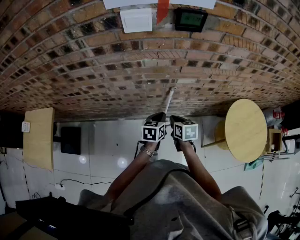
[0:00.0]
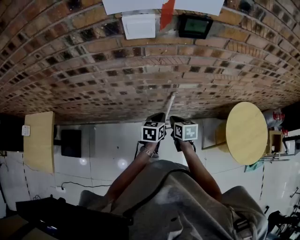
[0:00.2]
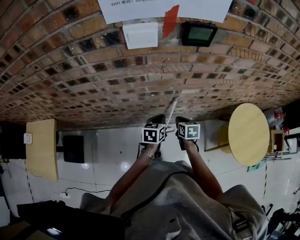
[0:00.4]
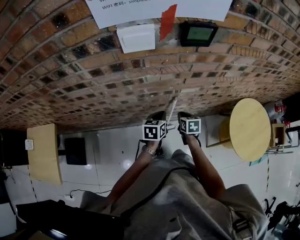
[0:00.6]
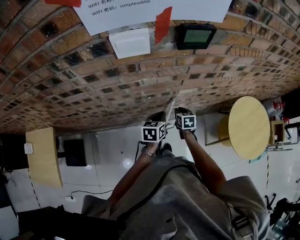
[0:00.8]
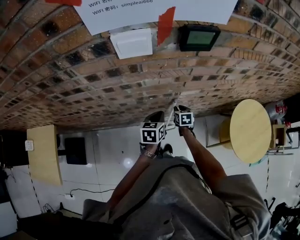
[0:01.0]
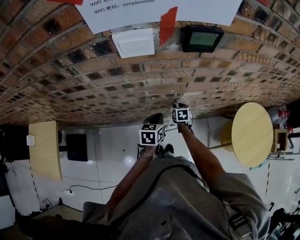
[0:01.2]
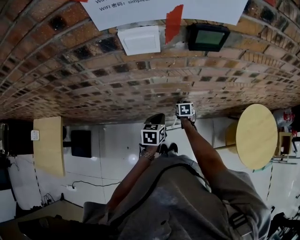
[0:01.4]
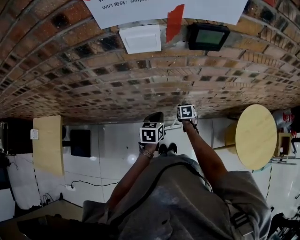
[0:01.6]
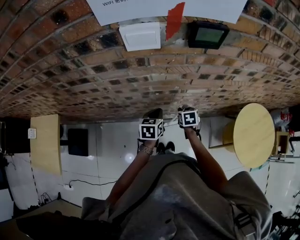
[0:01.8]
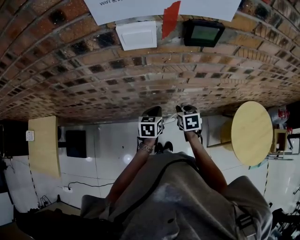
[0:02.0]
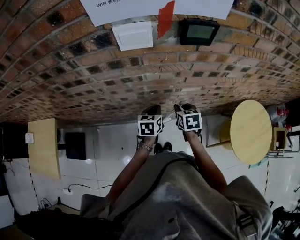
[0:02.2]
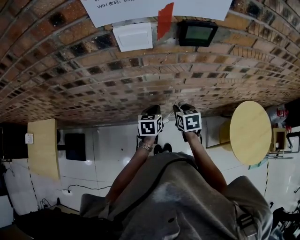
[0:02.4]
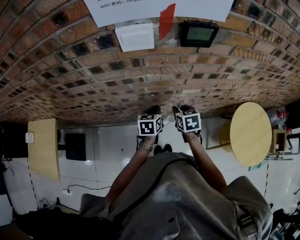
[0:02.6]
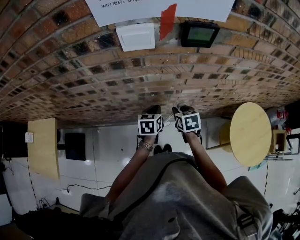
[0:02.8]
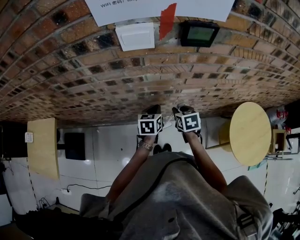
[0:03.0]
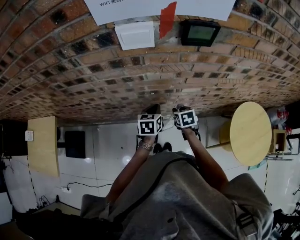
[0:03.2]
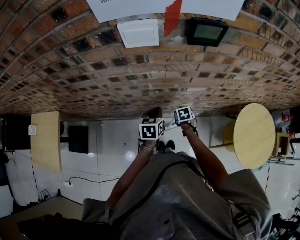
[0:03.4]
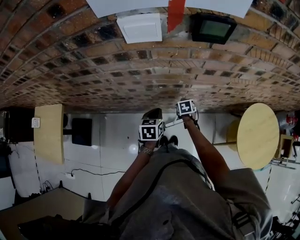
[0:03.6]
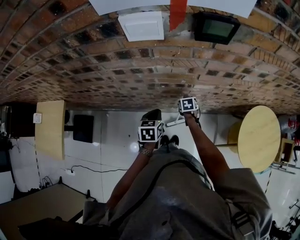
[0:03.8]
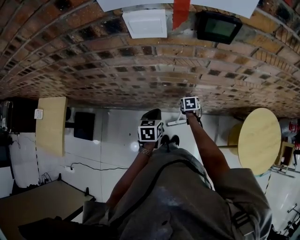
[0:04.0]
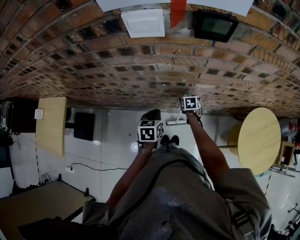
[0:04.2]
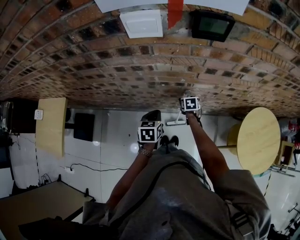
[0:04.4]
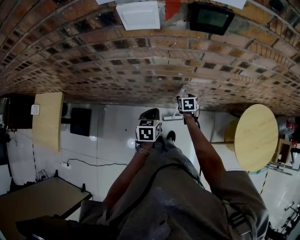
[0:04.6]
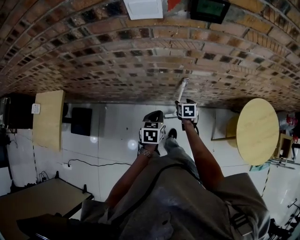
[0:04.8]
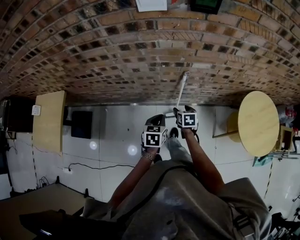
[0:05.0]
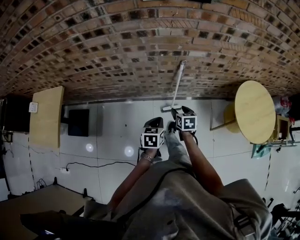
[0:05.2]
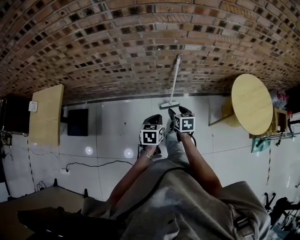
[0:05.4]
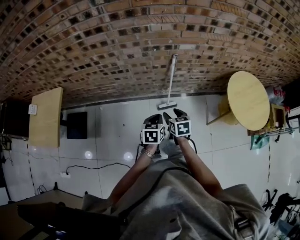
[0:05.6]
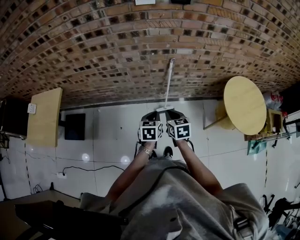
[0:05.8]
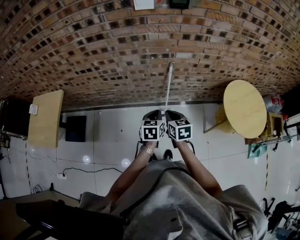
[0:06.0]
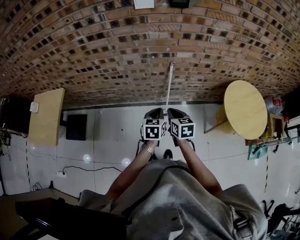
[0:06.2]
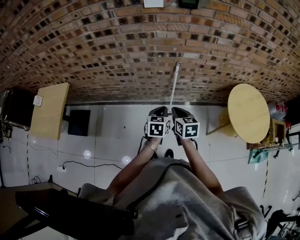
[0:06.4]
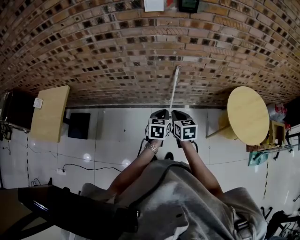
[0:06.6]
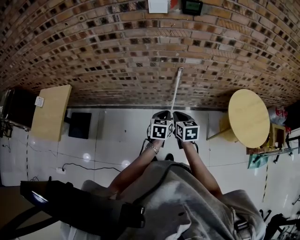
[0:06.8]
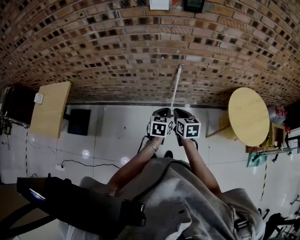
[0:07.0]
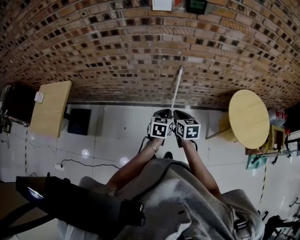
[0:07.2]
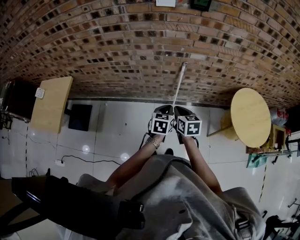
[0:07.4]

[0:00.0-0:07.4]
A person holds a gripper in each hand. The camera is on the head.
0.0 to 1.4 s: The right gripper is displaced forward and downward by roughly 25 cm. The left gripper goes approximately 10 cm forward and to the left.
1.4 to 3.0 s: The right gripper shifts about 20 cm upward and backward.
3.0 to 4.4 s: The right gripper heads downward, covering roughly 20 cm, and opens, while the left gripper is displaced backward by about 5 cm.
4.4 to 6.0 s: The left gripper travels backward by roughly 25 cm. Meanwhile the right gripper travels backward and upward by about 40 cm, turns by about 20 degrees, and closes its fingers.
6.0 to 7.4 s: The grippers stay close to where they were, moving slightly.

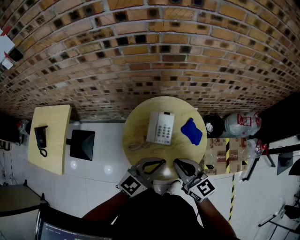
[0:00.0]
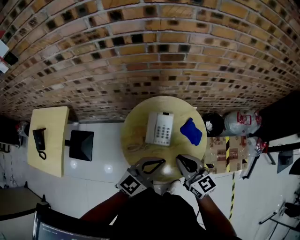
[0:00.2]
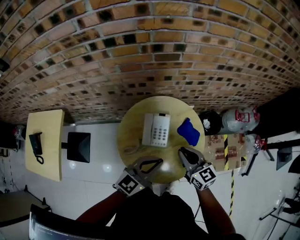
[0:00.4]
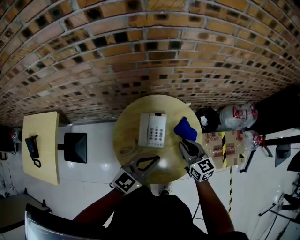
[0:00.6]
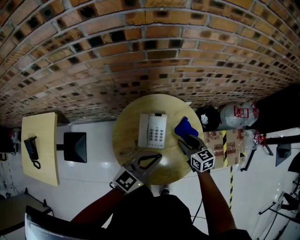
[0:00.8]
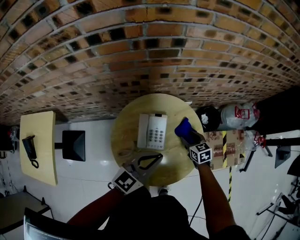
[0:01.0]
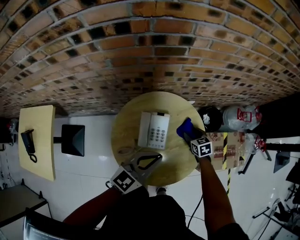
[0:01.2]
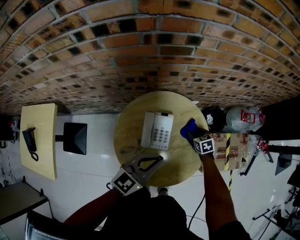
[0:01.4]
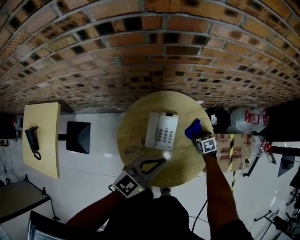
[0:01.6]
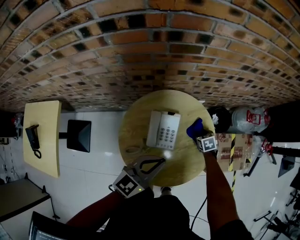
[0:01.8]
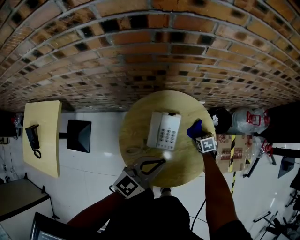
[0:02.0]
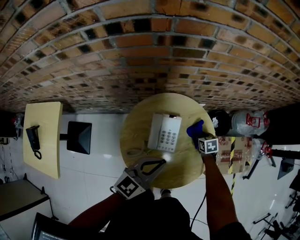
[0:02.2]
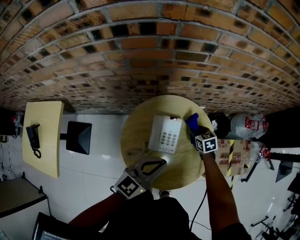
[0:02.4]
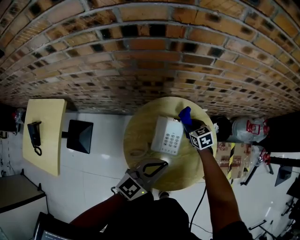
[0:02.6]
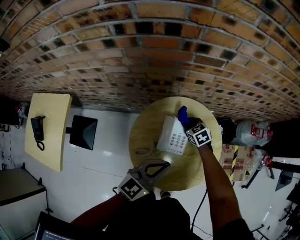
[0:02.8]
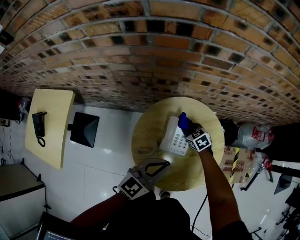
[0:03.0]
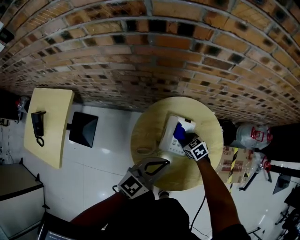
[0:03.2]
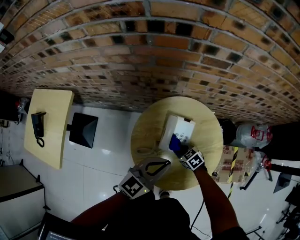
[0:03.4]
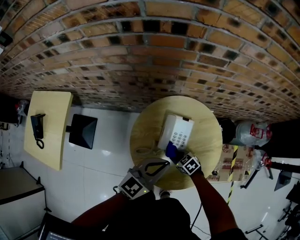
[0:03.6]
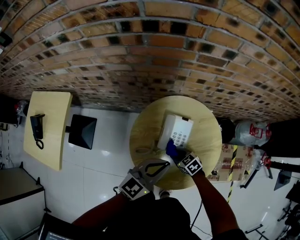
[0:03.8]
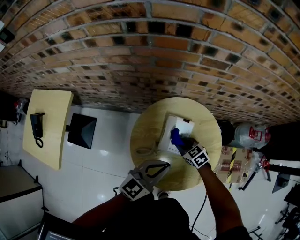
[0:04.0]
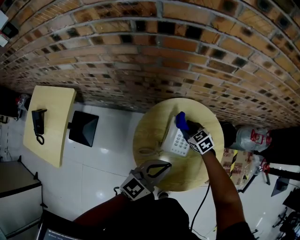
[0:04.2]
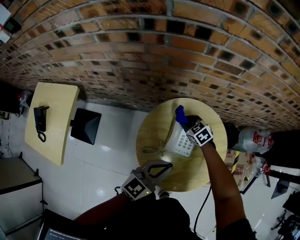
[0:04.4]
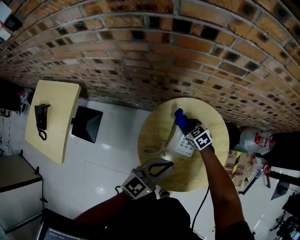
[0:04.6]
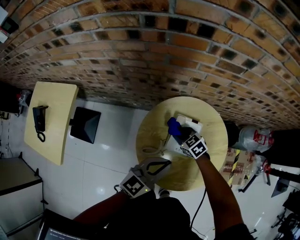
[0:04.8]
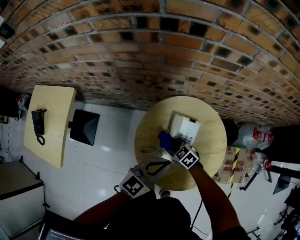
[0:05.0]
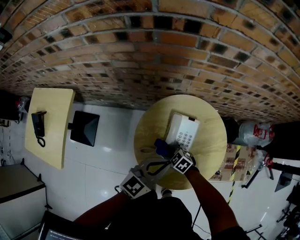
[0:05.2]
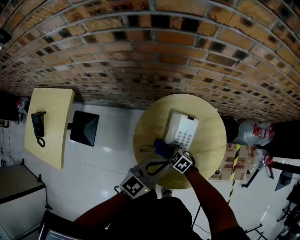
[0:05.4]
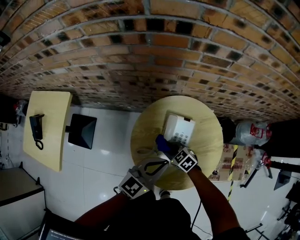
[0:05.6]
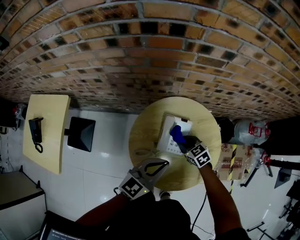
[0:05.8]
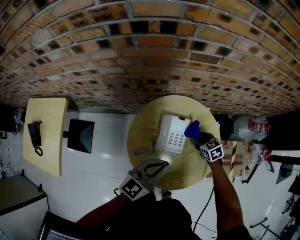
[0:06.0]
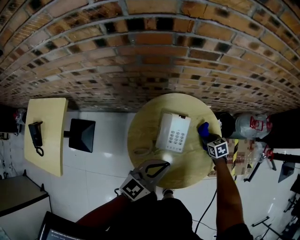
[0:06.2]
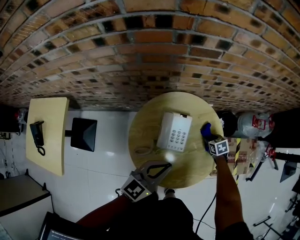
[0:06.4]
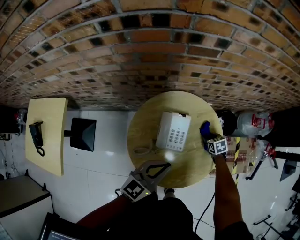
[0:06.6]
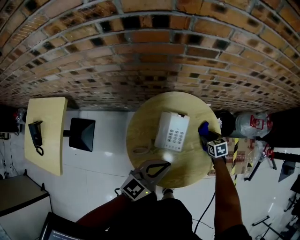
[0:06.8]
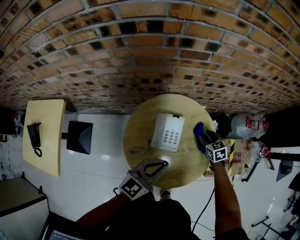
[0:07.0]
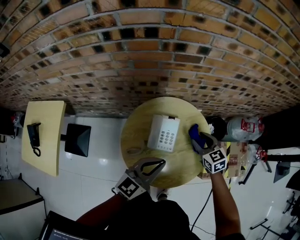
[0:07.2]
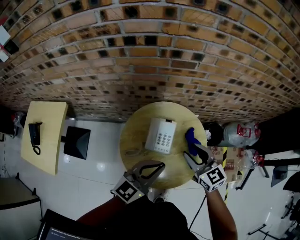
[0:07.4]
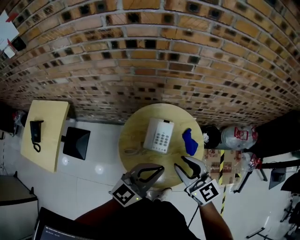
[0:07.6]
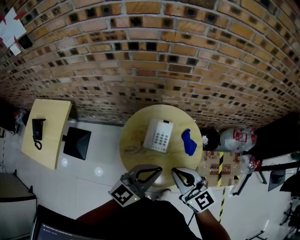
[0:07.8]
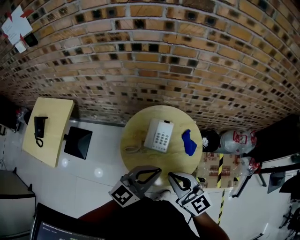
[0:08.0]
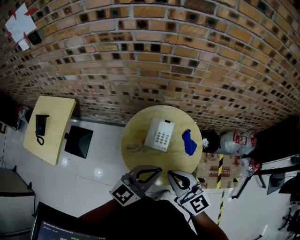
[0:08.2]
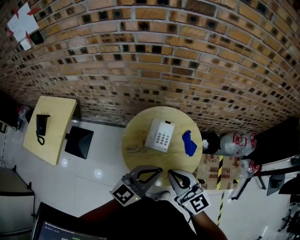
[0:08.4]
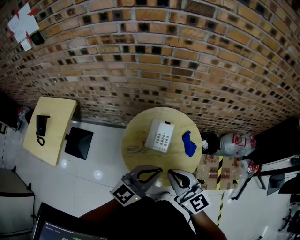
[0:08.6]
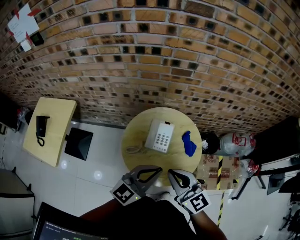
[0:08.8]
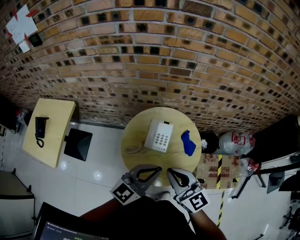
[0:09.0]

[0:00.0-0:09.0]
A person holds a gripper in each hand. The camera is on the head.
0.0 to 1.6 s: The right gripper goes about 40 cm downward and forward, tilts its fingers approximately 50 degrees downward, and opens; the left gripper moves forward and downward, roughly 10 cm.
1.6 to 3.0 s: The right gripper moves to the left, some 20 cm, rotates about 30 degrees, and closes its fingers; the left gripper is displaced to the left by about 5 cm.
4.4 to 6.0 s: The right gripper moves roughly 20 cm, and rotates roughly 20 degrees.
6.0 to 7.6 s: The left gripper goes approximately 15 cm upward, backward and to the right, while the right gripper travels upward and backward by approximately 35 cm, and tips its fingers upward by roughly 40 degrees.
7.6 to 9.0 s: The left gripper goes about 5 cm backward; the right gripper is displaced backward by approximately 10 cm, and closes up.

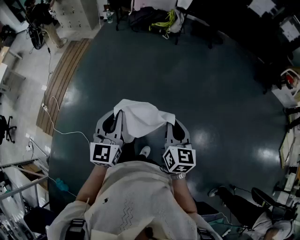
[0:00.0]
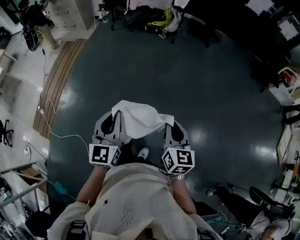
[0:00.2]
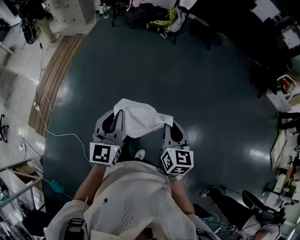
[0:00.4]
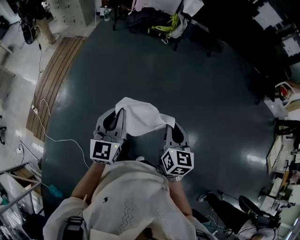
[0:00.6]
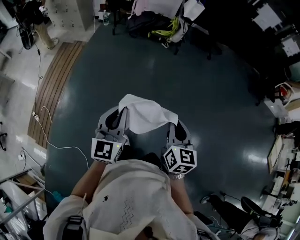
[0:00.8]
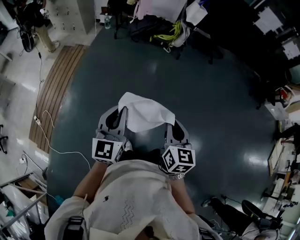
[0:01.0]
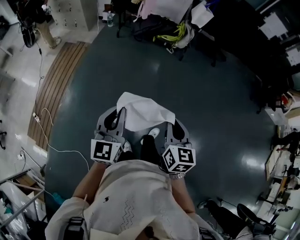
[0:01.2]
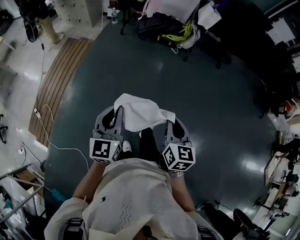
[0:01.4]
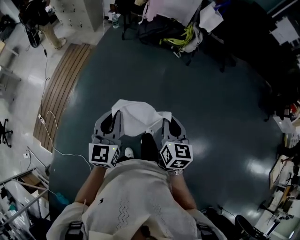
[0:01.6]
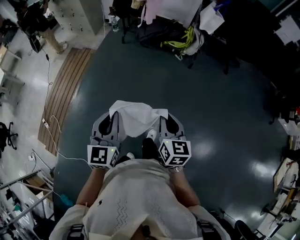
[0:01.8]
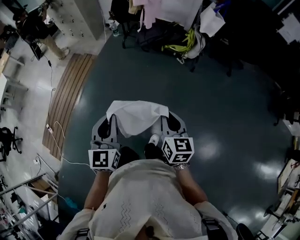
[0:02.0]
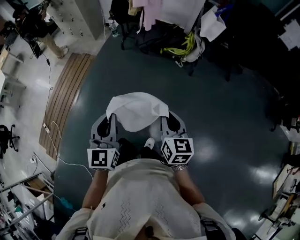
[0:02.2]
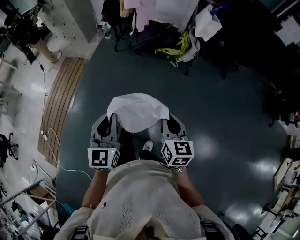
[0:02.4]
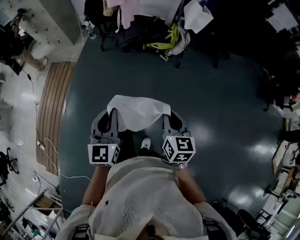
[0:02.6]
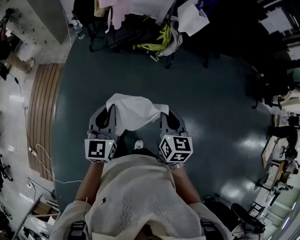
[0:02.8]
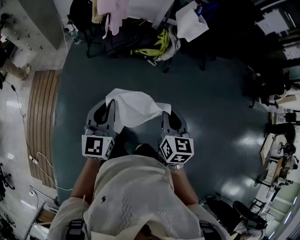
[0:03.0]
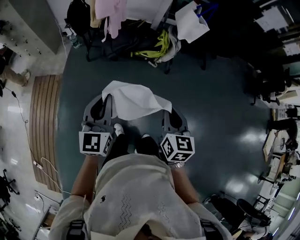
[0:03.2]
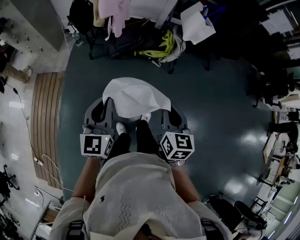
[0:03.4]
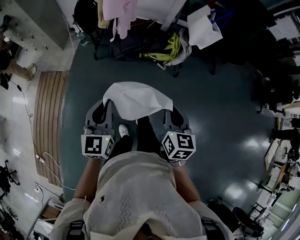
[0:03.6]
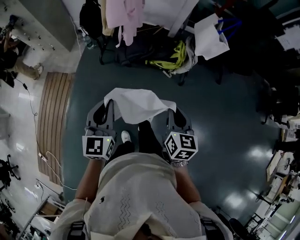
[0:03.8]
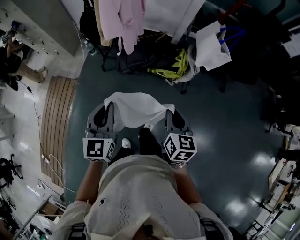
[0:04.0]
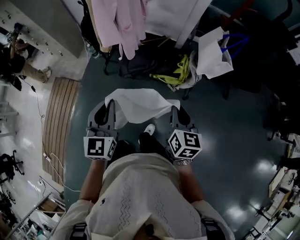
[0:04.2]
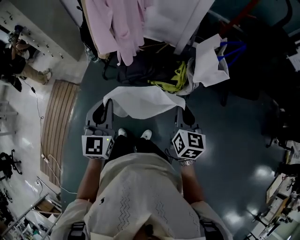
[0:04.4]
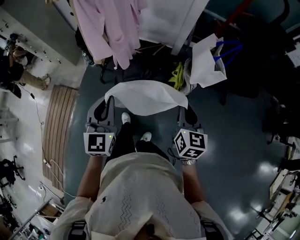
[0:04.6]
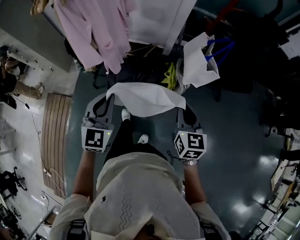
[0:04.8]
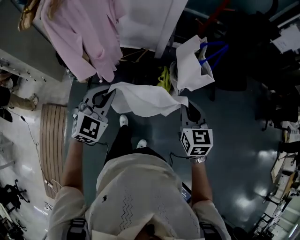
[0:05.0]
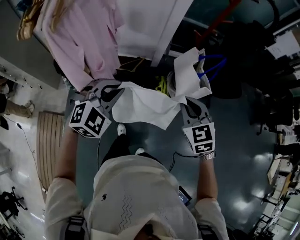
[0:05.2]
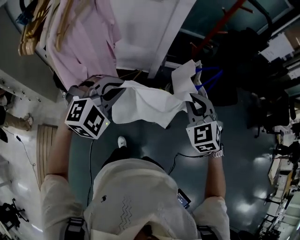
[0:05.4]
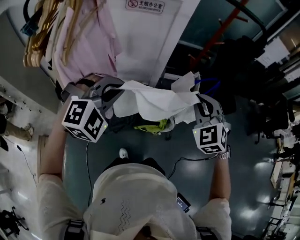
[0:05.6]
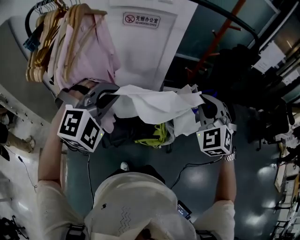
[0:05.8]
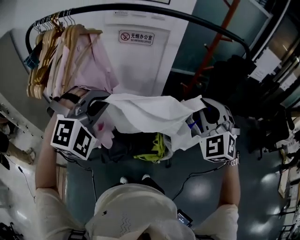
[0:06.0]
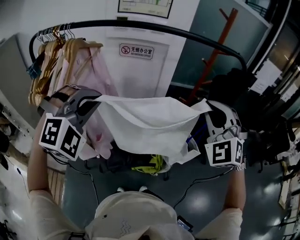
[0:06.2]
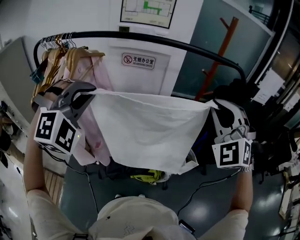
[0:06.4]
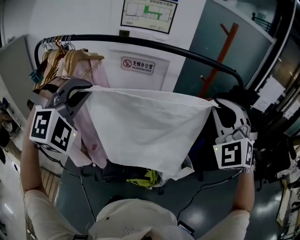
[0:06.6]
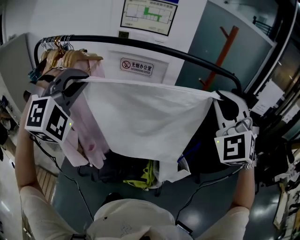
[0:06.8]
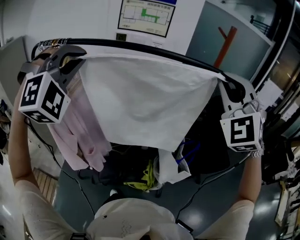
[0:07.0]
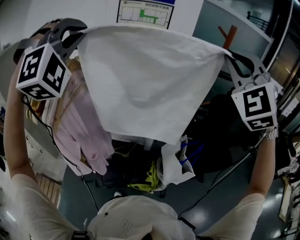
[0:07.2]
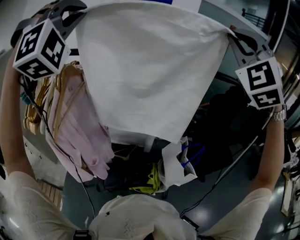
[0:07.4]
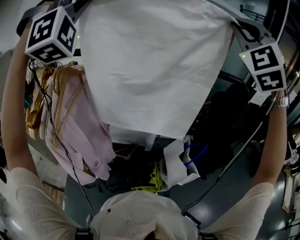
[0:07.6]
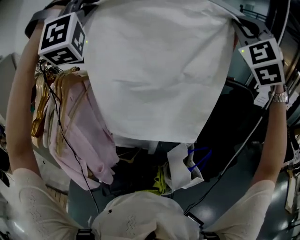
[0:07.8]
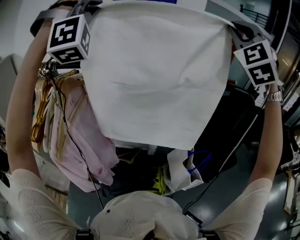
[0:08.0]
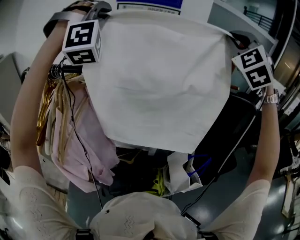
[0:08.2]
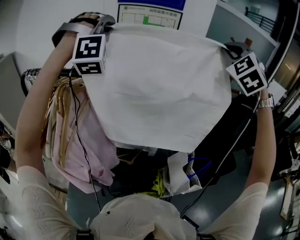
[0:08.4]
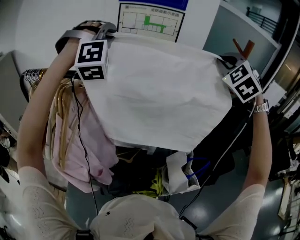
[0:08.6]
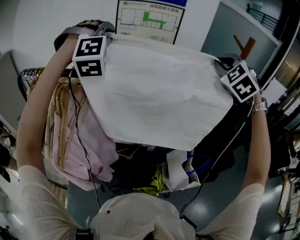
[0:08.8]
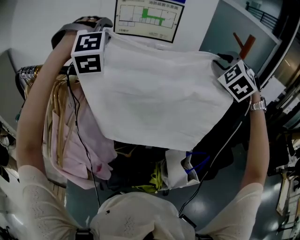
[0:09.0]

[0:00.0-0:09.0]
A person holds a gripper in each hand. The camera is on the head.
0.0 to 1.6 s: The two grippers travel together, forward, some 50 cm.
1.6 to 3.0 s: Both grippers are carried forward, about 50 cm.
3.0 to 4.4 s: Both grippers move forward, approximately 40 cm.
4.4 to 6.0 s: The right gripper is displaced upward by approximately 30 cm, and rotates around the line of its fingers by approximately 70 degrees, counterclockwise from behind; the left gripper shifts by approximately 40 cm, and twists some 80 degrees clockwise, seen from behind.
6.0 to 7.6 s: Both grippers move upward and forward, some 40 cm. The right gripper rotates roughly 30 degrees. The left gripper tips its fingers upward by about 40 degrees.
7.6 to 9.0 s: The grippers both shift forward and downward by about 20 cm. The right gripper turns by roughly 30 degrees; the left gripper changes its angle by some 30 degrees, and opens its fingers.
